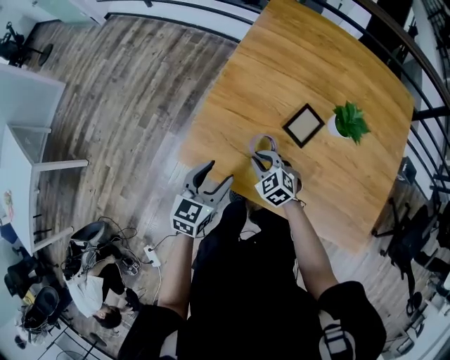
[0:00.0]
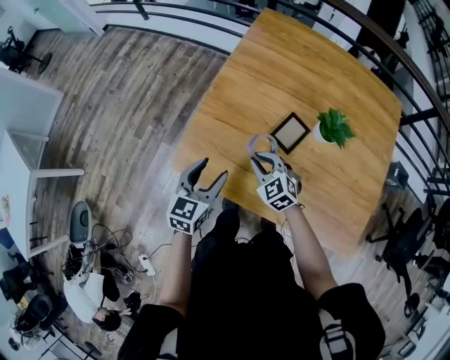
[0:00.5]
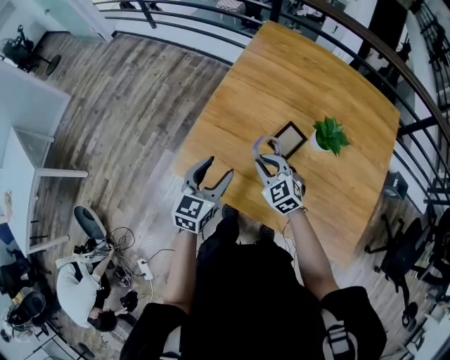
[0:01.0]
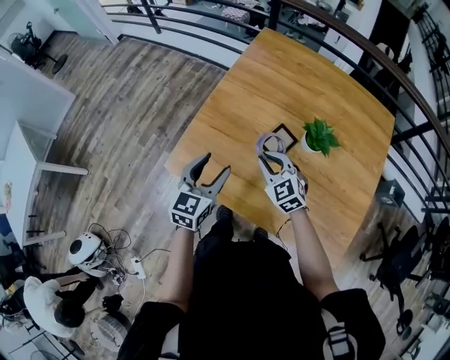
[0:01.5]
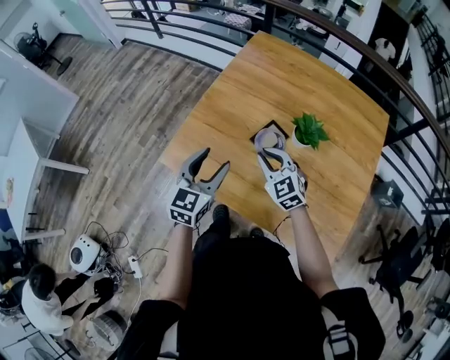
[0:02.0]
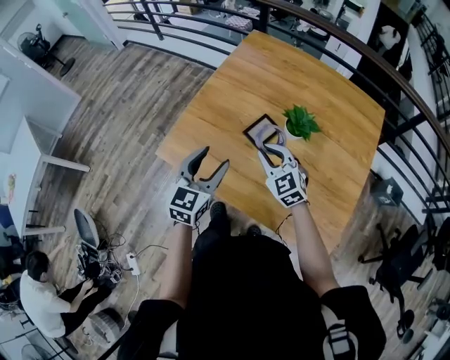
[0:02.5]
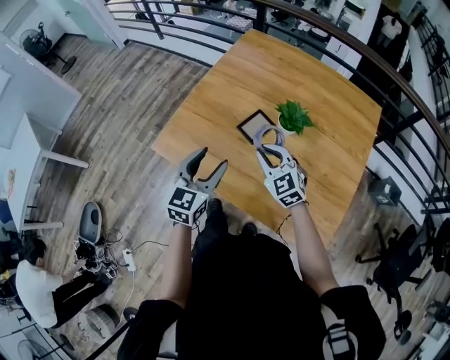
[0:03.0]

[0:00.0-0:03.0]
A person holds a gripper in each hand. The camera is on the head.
0:00.0 to 0:01.5: The grippers both shift upward and to the right by some 15 cm.
0:01.5 to 0:03.0: Both grippers travel together to the right and backward, roughly 15 cm.

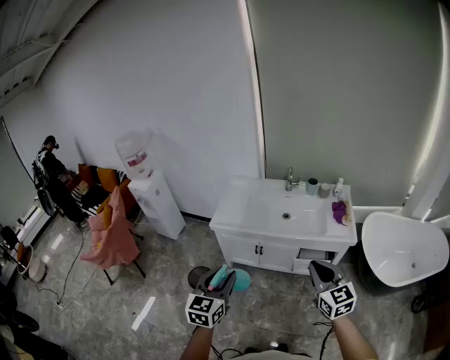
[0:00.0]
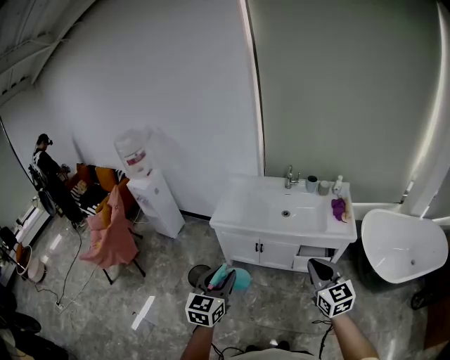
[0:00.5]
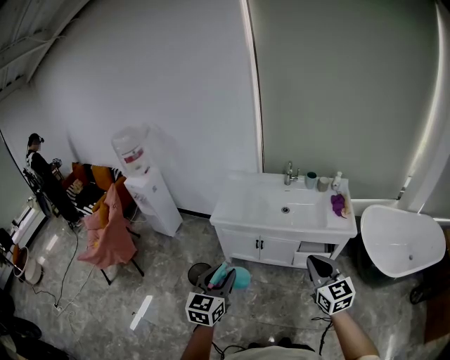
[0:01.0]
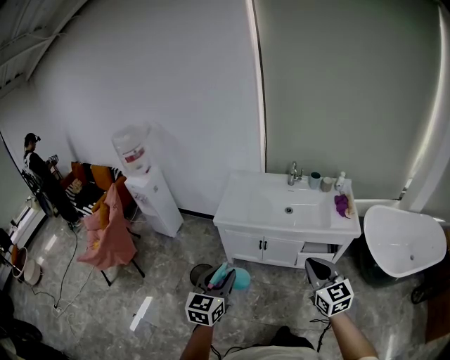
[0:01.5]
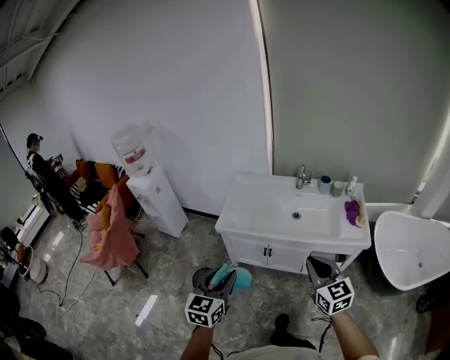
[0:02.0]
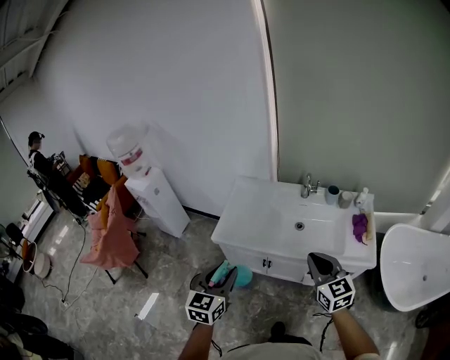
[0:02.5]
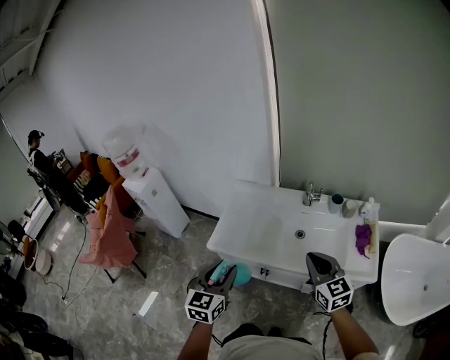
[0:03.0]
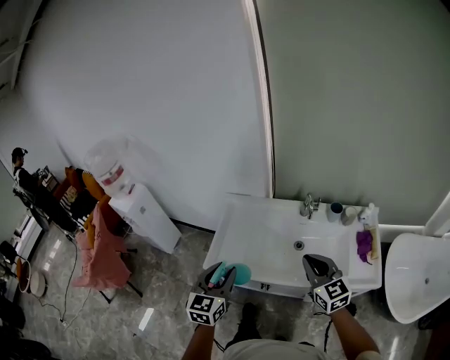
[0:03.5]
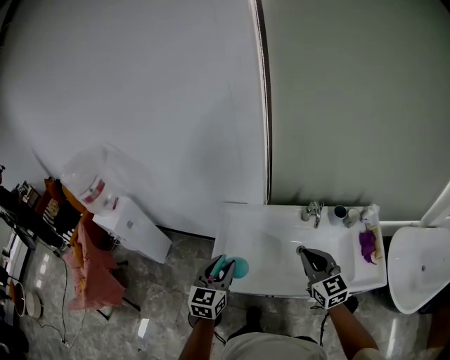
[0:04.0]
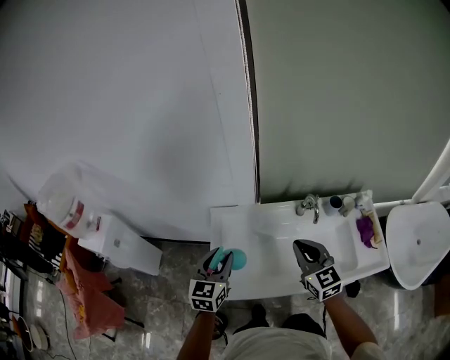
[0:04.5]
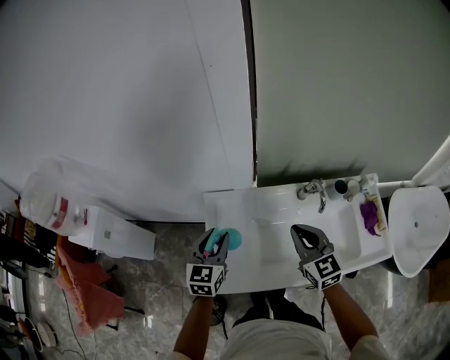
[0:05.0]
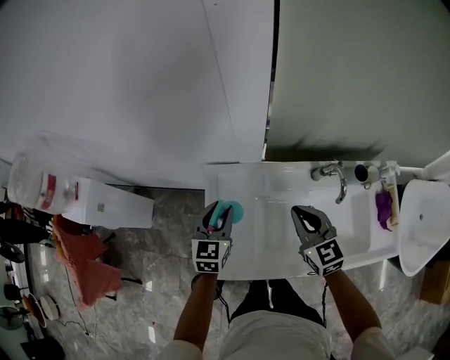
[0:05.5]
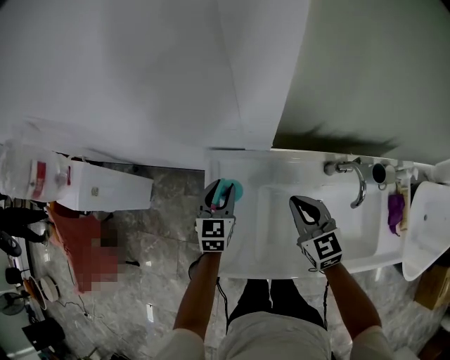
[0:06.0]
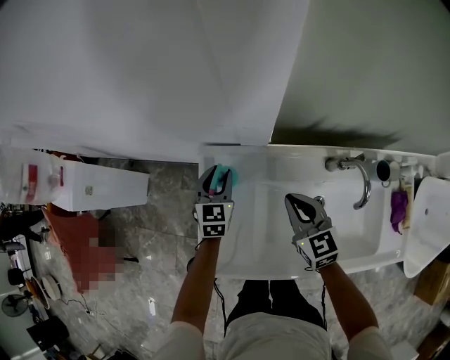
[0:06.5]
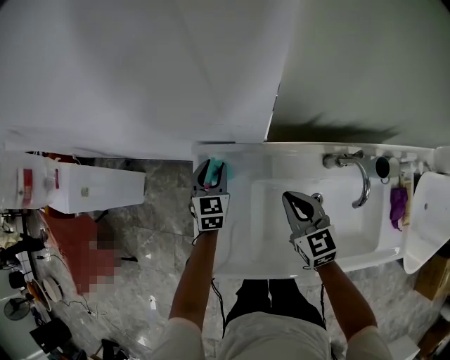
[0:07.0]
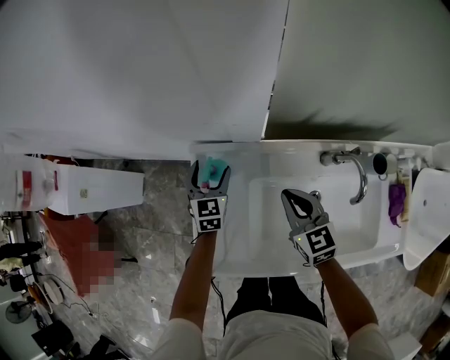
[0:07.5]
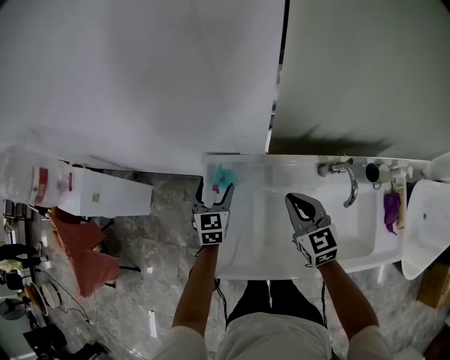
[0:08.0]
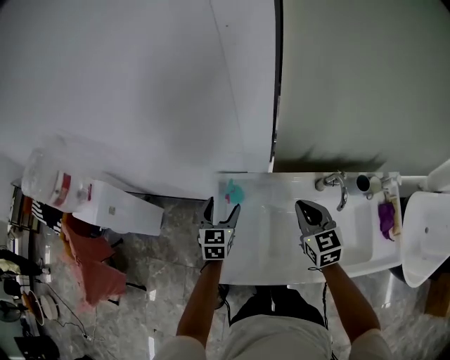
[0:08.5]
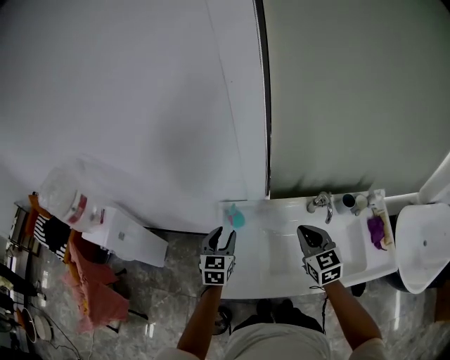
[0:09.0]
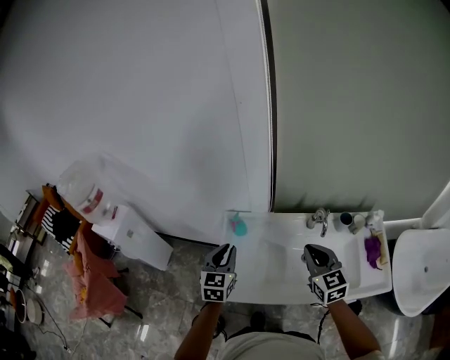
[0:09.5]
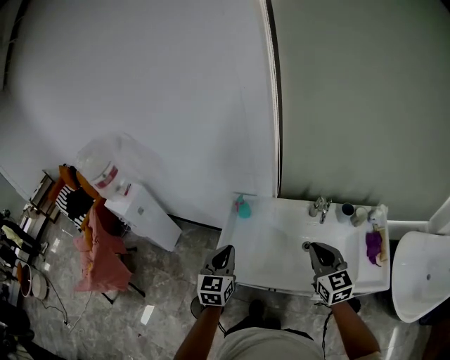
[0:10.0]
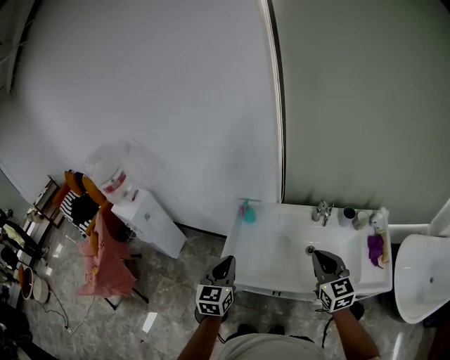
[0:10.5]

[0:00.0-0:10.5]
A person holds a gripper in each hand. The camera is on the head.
0:00.0 to 0:02.0: Both grippers move forward and to the left, approximately 10 cm.
0:02.0 to 0:04.0: The pair of grippers is taken forward, approximately 40 cm.
0:04.0 to 0:06.5: The grippers both shift forward and downward by some 40 cm.
0:06.5 to 0:08.5: The right gripper travels upward by some 10 cm, while the left gripper shifts some 15 cm upward and backward, and opens.
0:08.5 to 0:10.5: The two grippers go about 35 cm backward and upward. The left gripper closes its fingers.

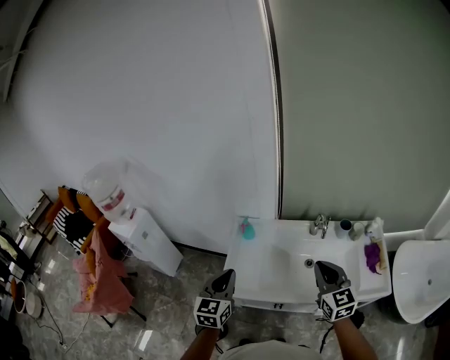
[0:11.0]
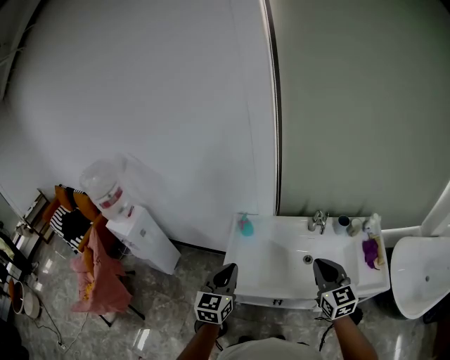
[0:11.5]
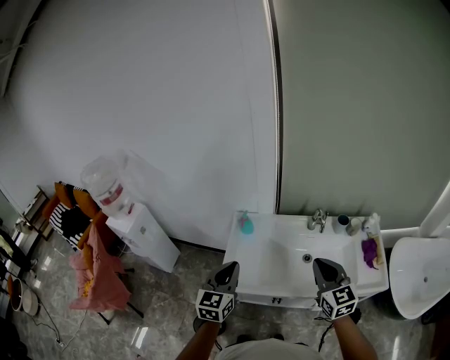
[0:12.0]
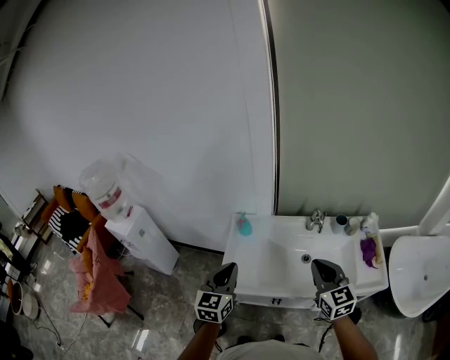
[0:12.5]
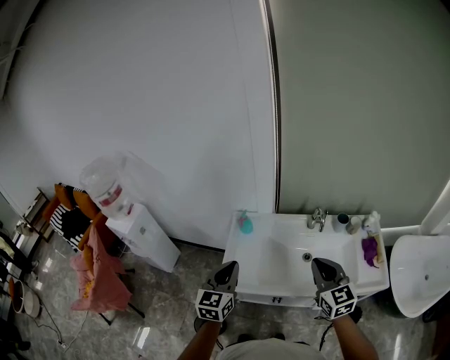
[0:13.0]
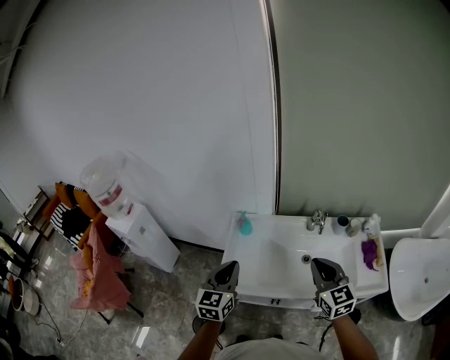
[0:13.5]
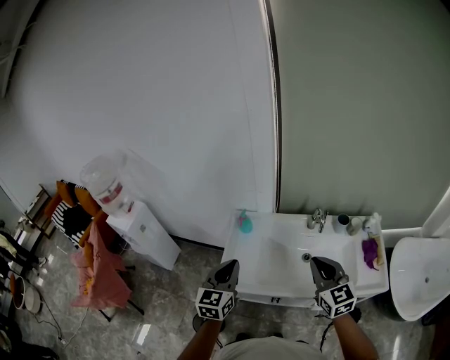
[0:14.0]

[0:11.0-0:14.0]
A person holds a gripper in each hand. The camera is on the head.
0:11.0 to 0:14.0: There are only small adjustments of the grippers.

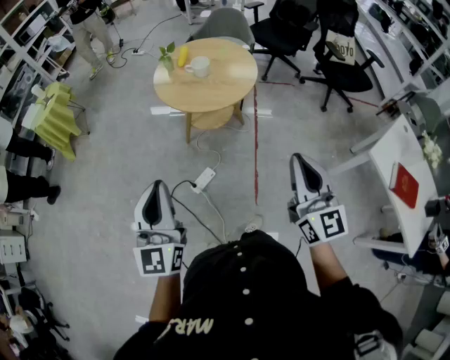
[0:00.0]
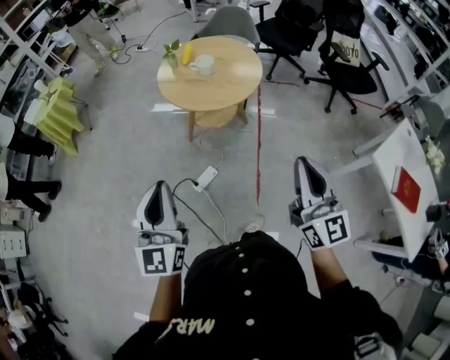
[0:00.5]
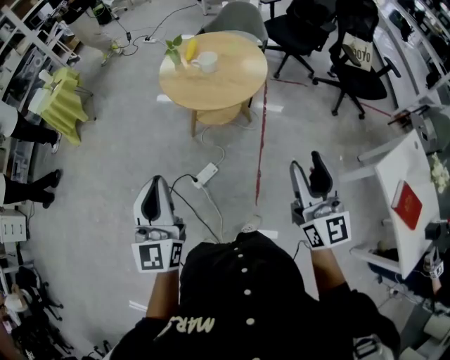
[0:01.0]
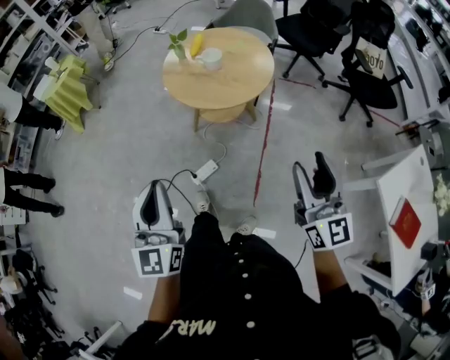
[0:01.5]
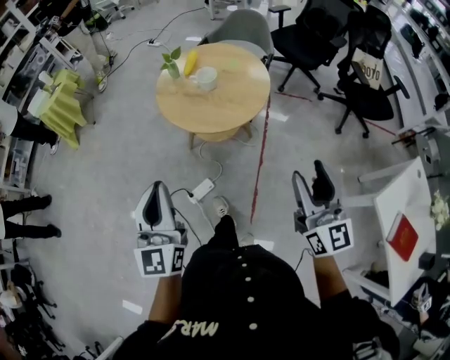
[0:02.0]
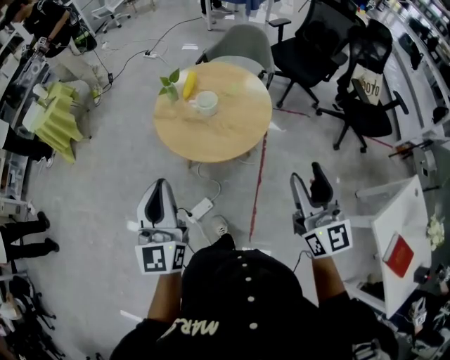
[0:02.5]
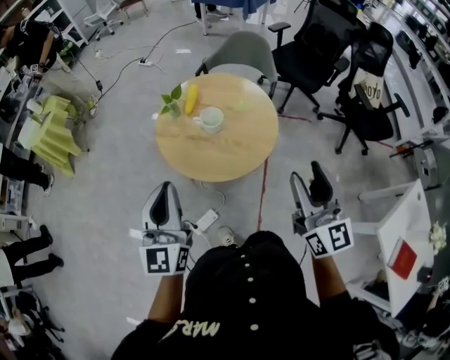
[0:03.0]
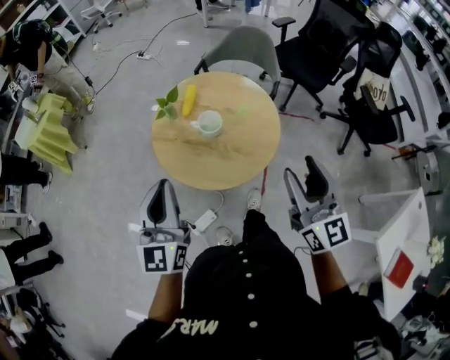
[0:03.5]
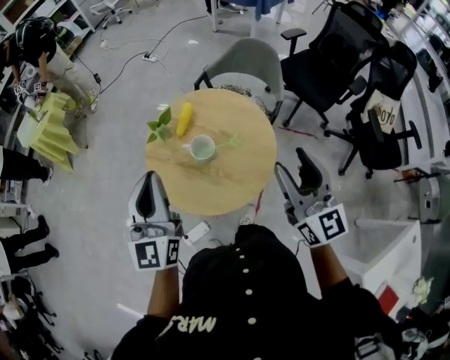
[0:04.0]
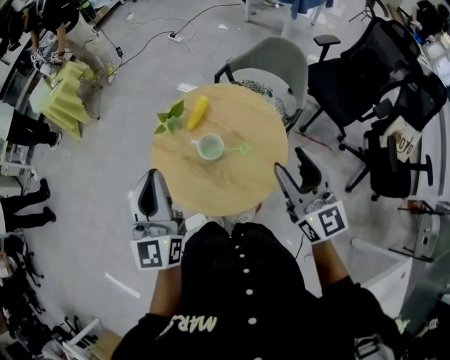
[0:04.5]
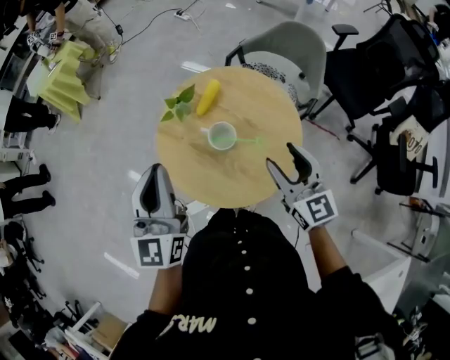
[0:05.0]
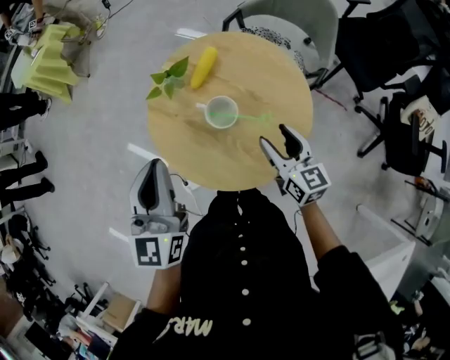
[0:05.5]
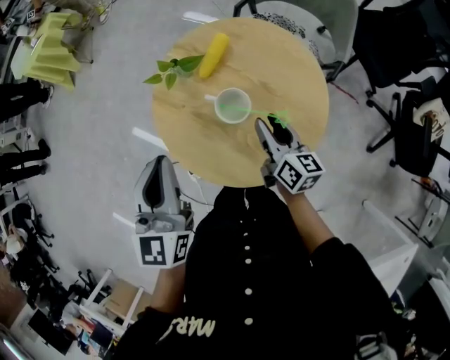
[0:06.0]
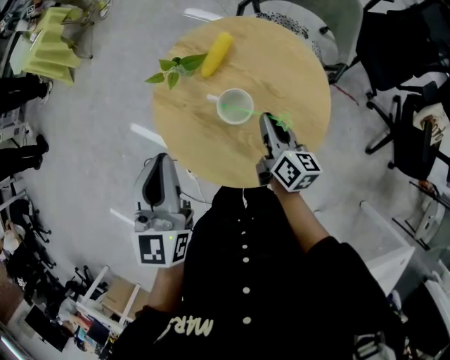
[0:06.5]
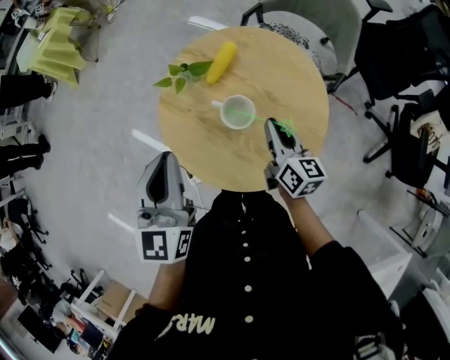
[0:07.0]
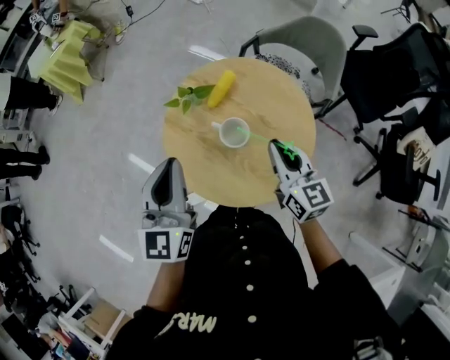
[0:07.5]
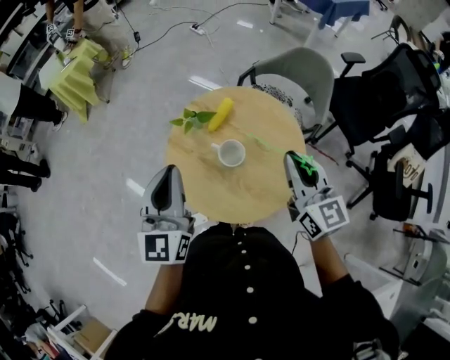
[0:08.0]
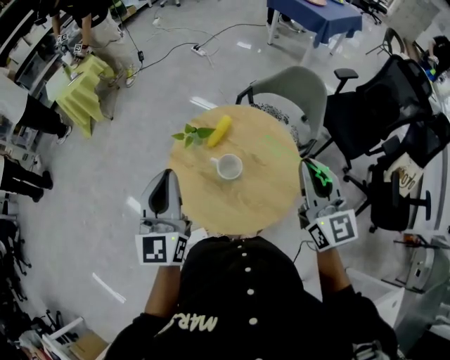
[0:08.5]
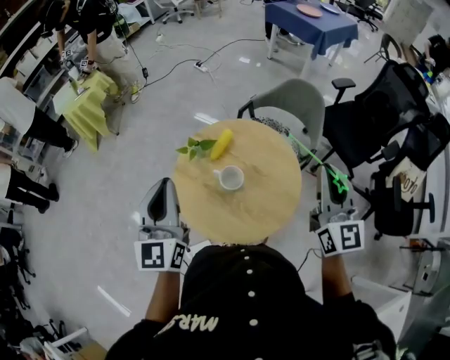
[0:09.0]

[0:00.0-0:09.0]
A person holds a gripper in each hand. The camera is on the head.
0:00.0 to 0:02.0: Both grippers travel together forward and to the right, roughly 20 cm. The right gripper opens its fingers.
0:02.0 to 0:04.5: The pair of grippers is taken forward, about 50 cm. The right gripper turns by some 20 degrees.
0:04.5 to 0:07.0: The left gripper is displaced downward and forward by approximately 15 cm; the right gripper goes some 30 cm downward and forward, changes its angle by about 40 degrees, and closes up.
0:07.0 to 0:09.0: The right gripper is displaced upward by some 35 cm, and changes its angle by approximately 50 degrees. Meanwhile the left gripper heads upward, covering roughly 15 cm.

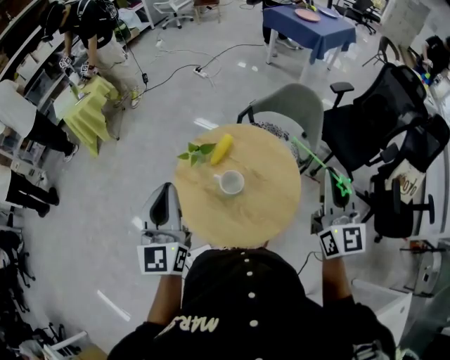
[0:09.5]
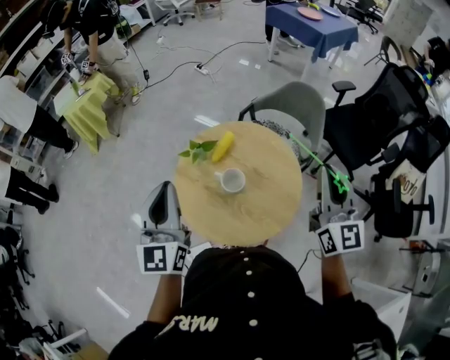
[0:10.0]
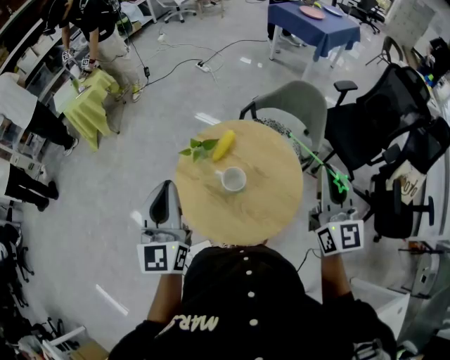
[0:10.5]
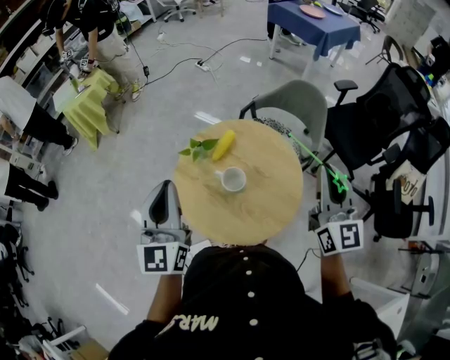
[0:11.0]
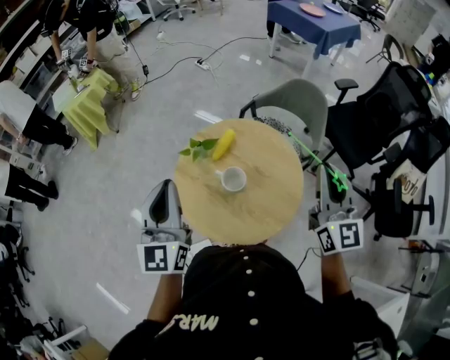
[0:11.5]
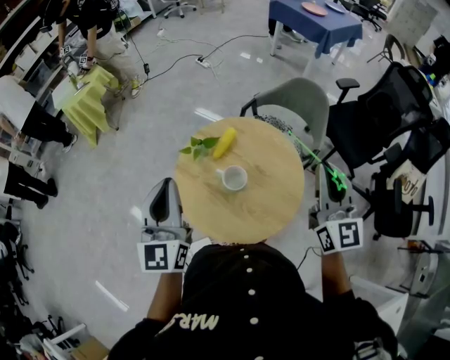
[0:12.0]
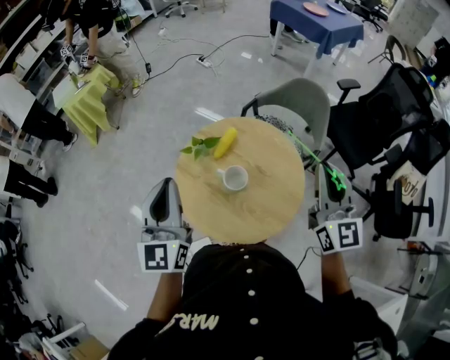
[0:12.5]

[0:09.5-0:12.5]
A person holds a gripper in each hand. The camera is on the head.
0:09.5 to 0:12.5: The grippers move only a little.
